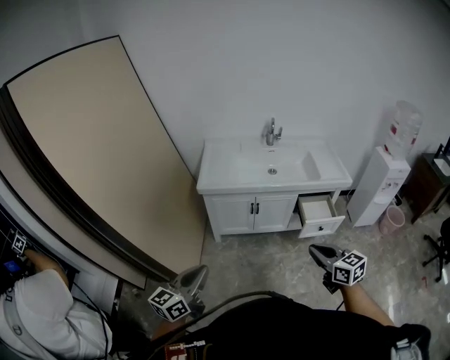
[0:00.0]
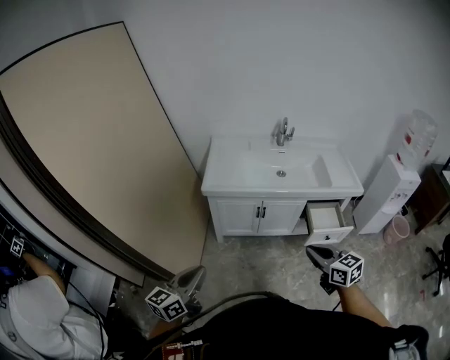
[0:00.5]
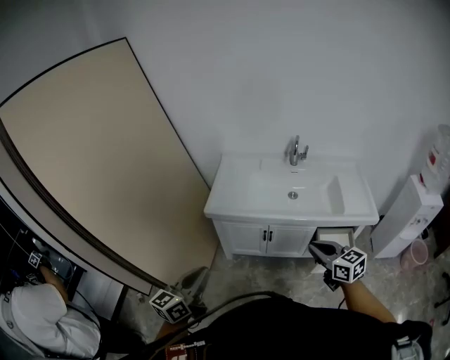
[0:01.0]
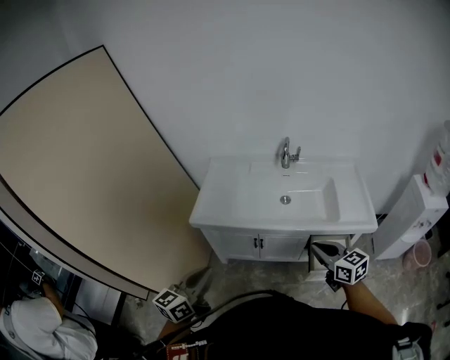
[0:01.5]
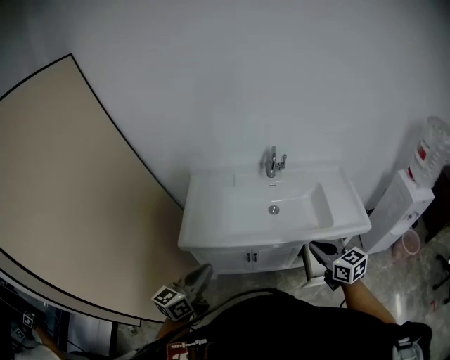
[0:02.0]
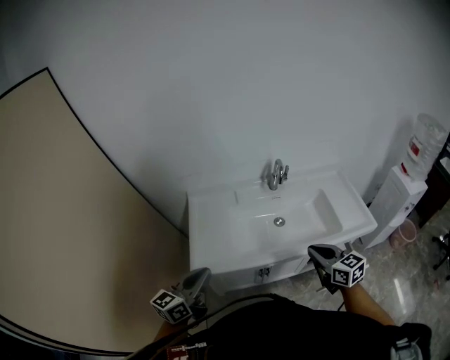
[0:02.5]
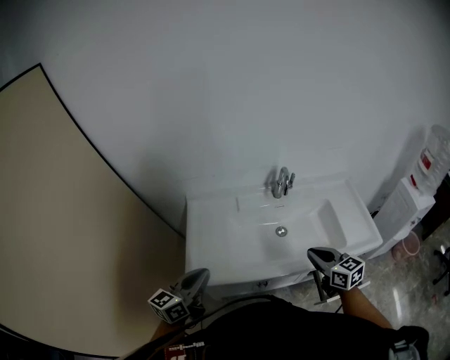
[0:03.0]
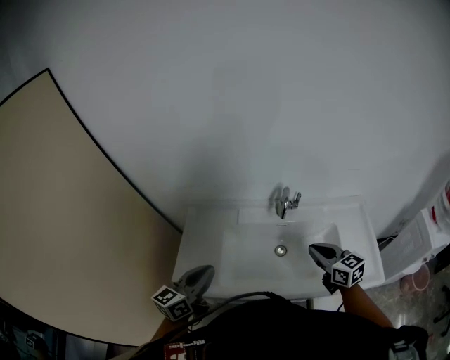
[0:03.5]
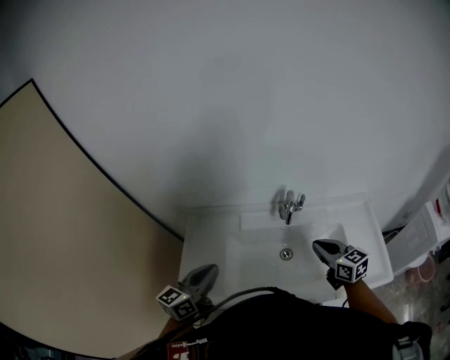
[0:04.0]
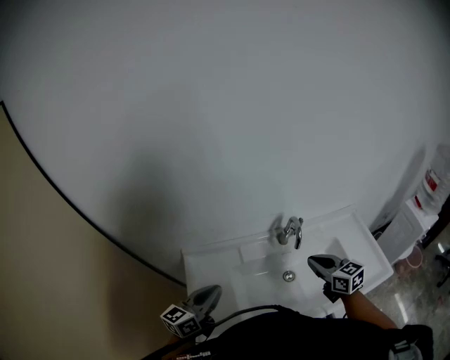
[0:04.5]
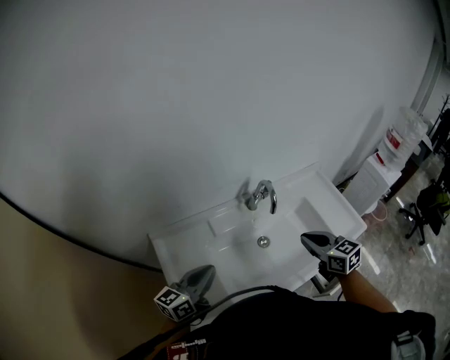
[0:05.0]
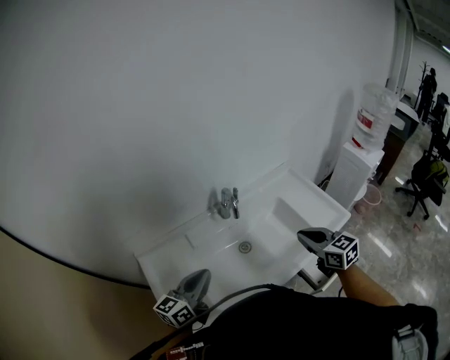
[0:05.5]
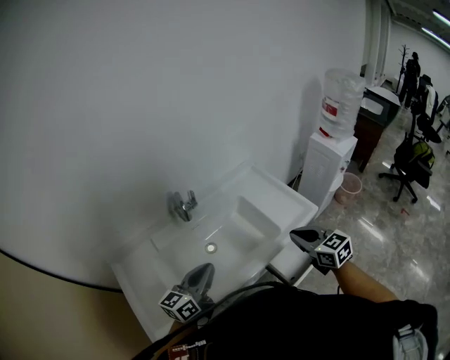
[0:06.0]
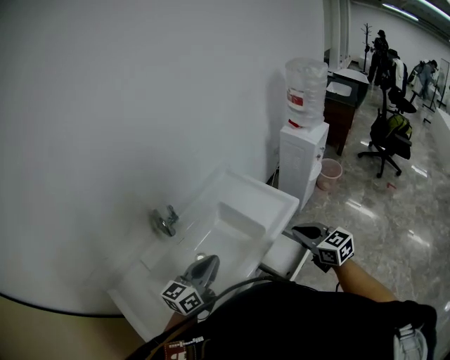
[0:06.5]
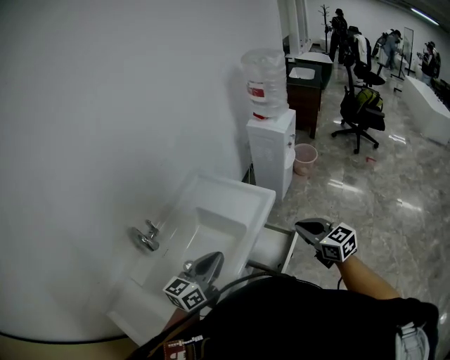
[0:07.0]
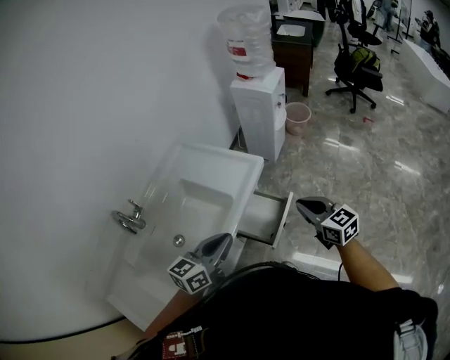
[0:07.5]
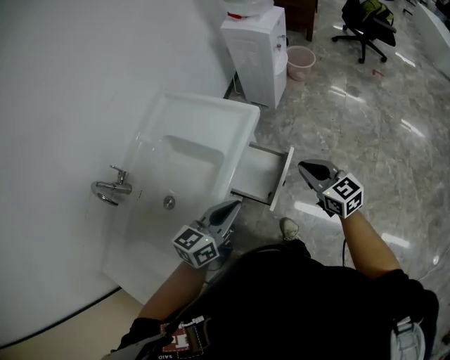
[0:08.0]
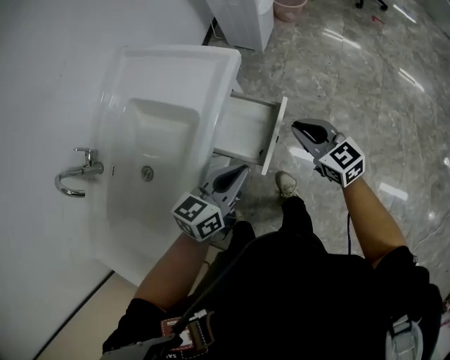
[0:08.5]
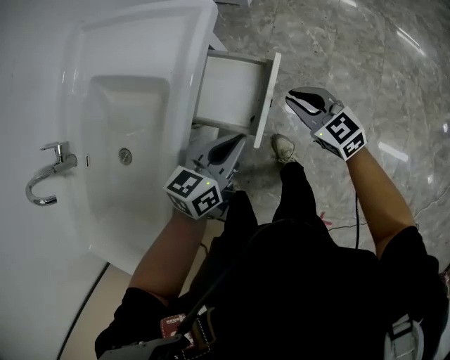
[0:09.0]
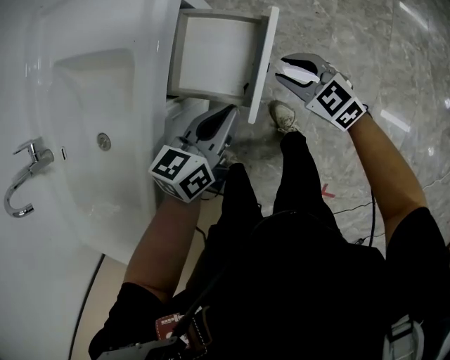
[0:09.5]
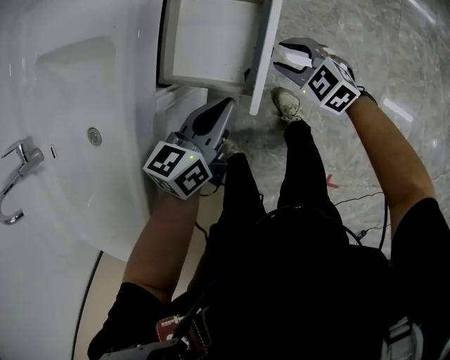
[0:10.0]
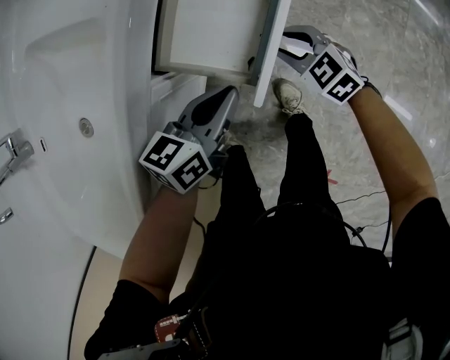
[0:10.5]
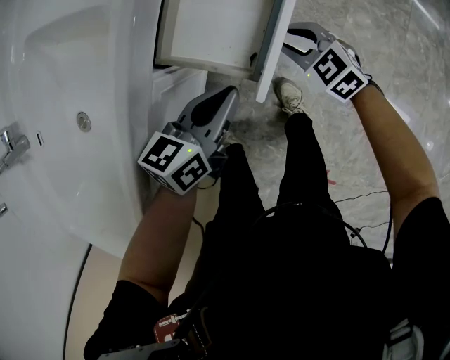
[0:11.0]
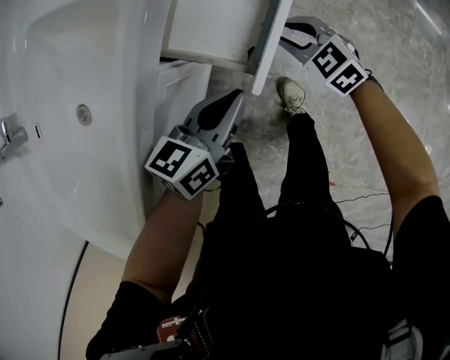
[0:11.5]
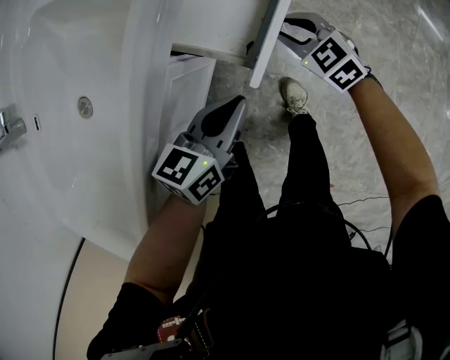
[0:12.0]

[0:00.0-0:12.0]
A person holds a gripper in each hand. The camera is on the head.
0:00.0 to 0:02.0: Both grippers are carried forward, roughly 40 cm.
0:02.0 to 0:04.0: The two grippers go some 30 cm forward.
0:04.0 to 0:06.0: The right gripper ends up about 25 cm from where it was, and changes its angle by about 30 degrees; the left gripper ends up some 20 cm from where it was, and turns by some 30 degrees.
0:06.0 to 0:08.0: The left gripper ends up approximately 30 cm from where it was, and changes its angle by approximately 40 degrees. The right gripper ends up some 30 cm from where it was, and rotates about 30 degrees.
0:08.0 to 0:10.0: The two grippers go about 35 cm downward. The right gripper turns by some 30 degrees, and opens its fingers.
0:10.0 to 0:12.0: The left gripper is displaced backward by about 5 cm.

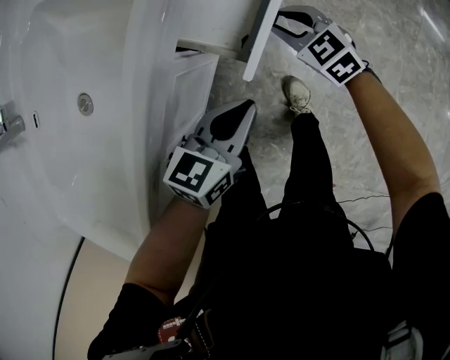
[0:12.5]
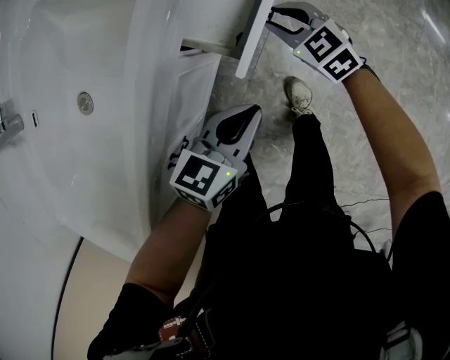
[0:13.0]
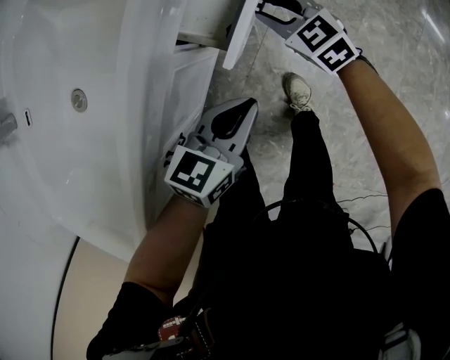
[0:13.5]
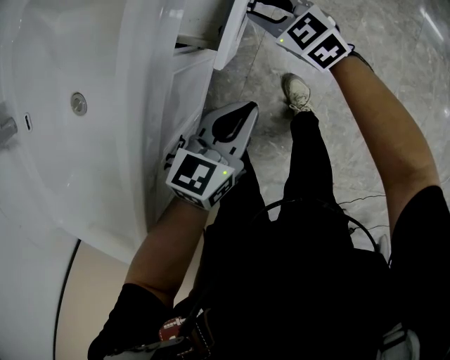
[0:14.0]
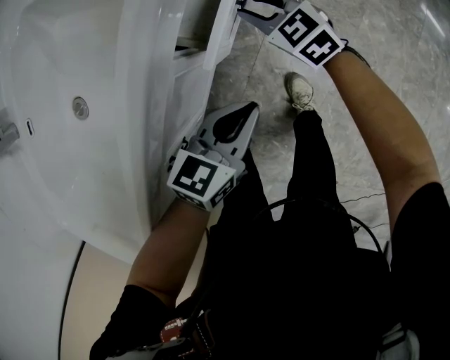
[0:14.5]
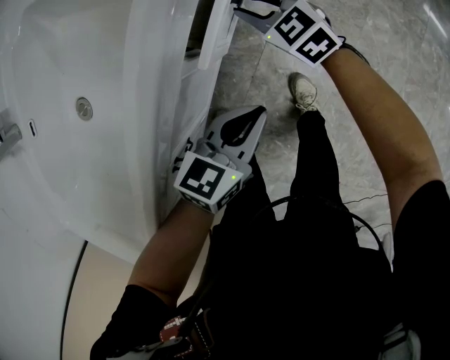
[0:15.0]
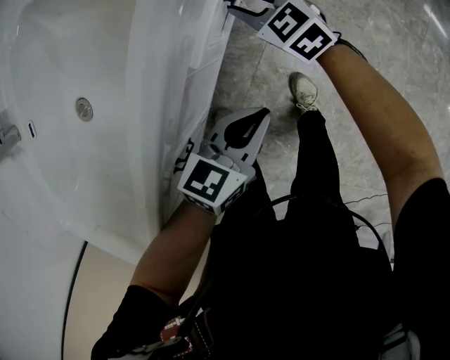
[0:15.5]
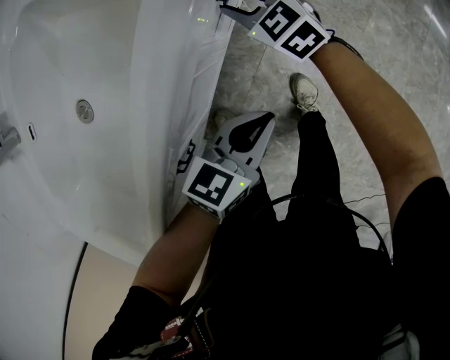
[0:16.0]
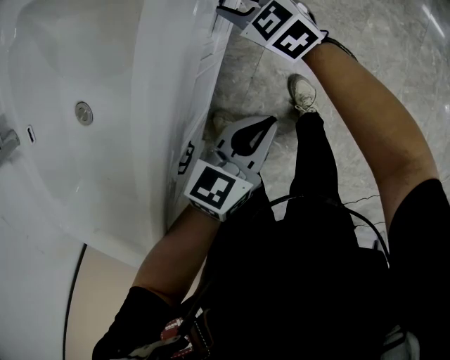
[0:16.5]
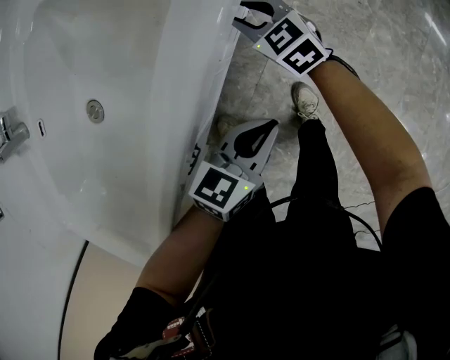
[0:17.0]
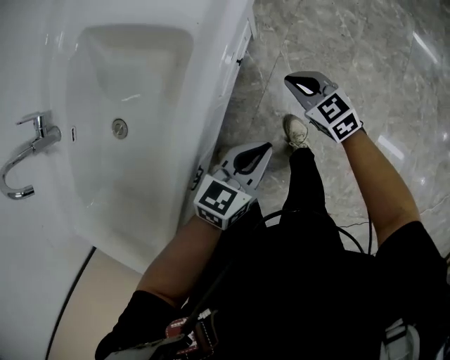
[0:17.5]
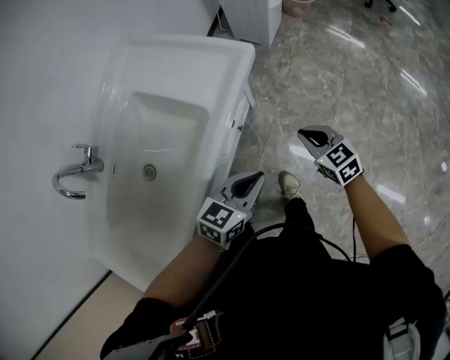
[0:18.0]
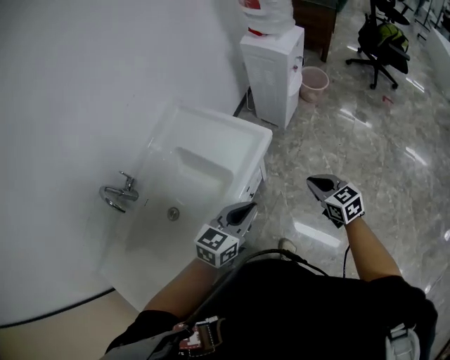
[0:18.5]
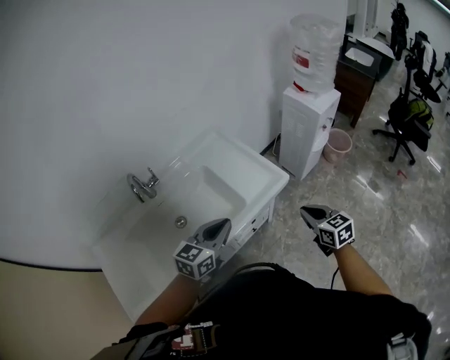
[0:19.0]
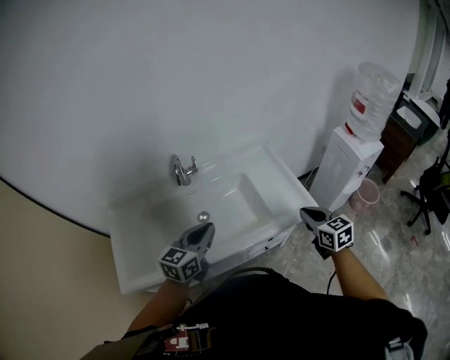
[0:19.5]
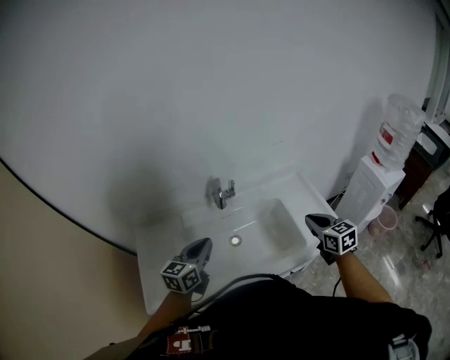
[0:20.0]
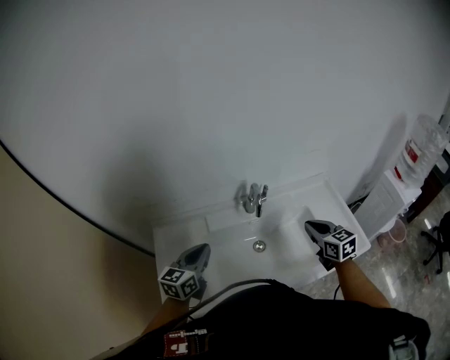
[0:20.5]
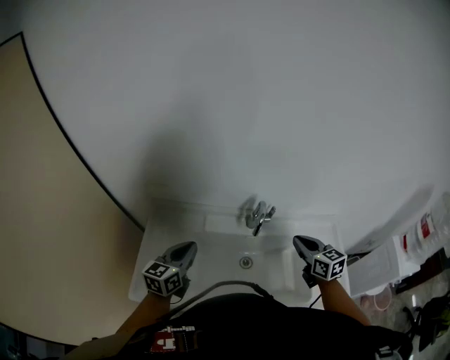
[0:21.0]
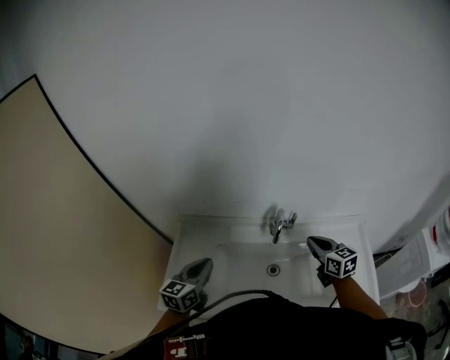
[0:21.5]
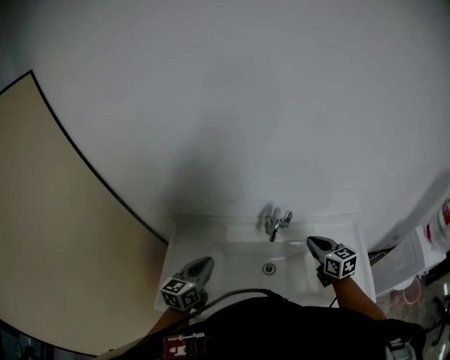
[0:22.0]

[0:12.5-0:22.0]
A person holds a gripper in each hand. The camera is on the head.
0:12.5 to 0:14.5: The right gripper travels to the left by roughly 5 cm.
0:14.5 to 0:16.5: The right gripper goes approximately 5 cm to the left.
0:16.5 to 0:18.0: The left gripper travels upward by roughly 20 cm. Meanwhile the right gripper heads to the right and upward, covering approximately 30 cm, and closes.
0:18.0 to 0:20.0: The left gripper ends up approximately 50 cm from where it was, and changes its angle by roughly 70 degrees. The right gripper shifts some 30 cm upward, and rotates some 30 degrees.
0:20.0 to 0:22.0: The right gripper heads forward and to the left, covering approximately 20 cm, and changes its angle by roughly 20 degrees; the left gripper moves to the left, about 15 cm, and turns by some 20 degrees.

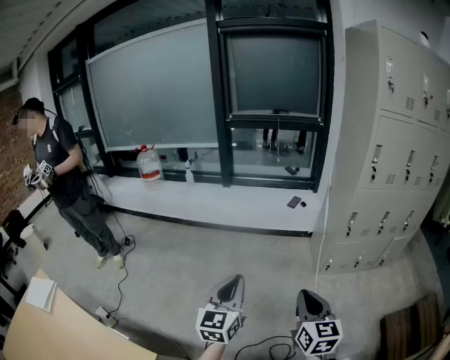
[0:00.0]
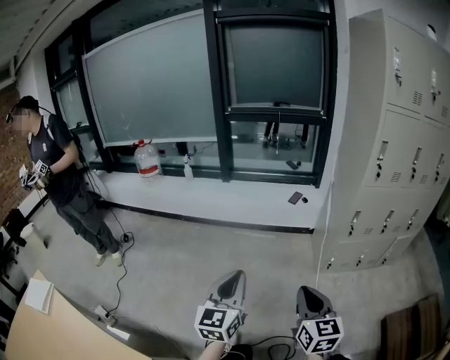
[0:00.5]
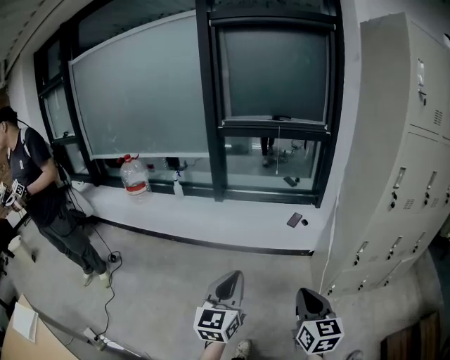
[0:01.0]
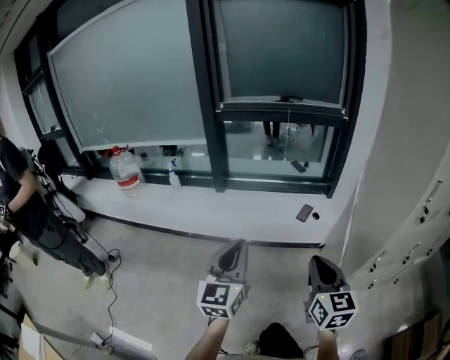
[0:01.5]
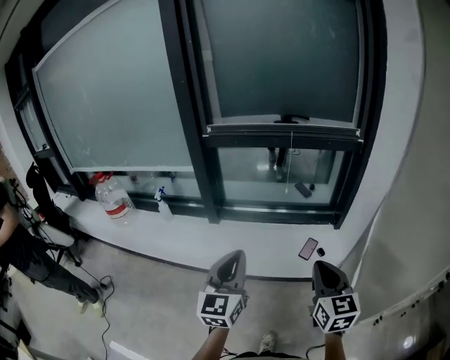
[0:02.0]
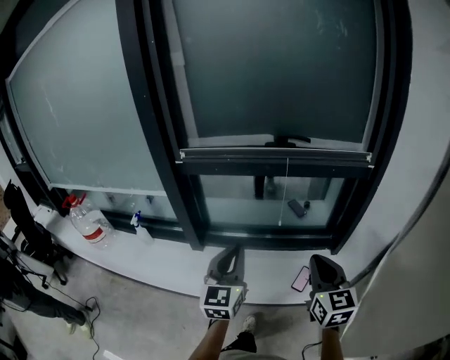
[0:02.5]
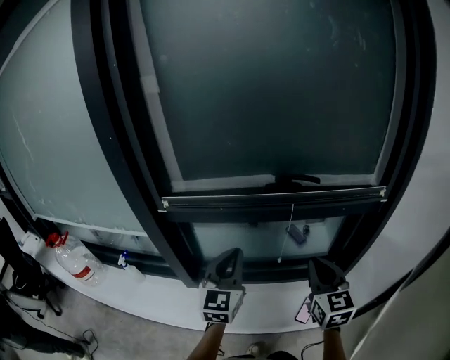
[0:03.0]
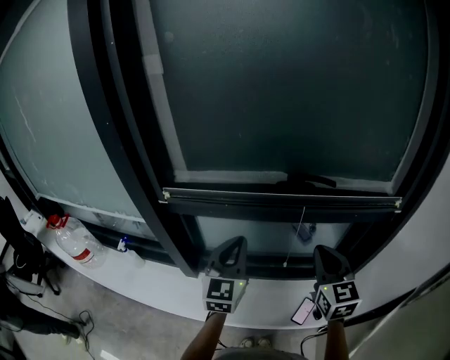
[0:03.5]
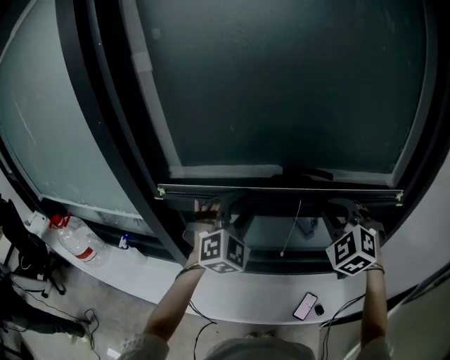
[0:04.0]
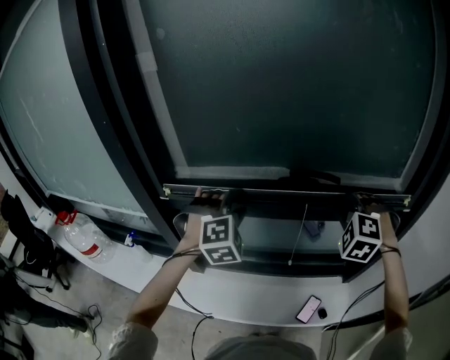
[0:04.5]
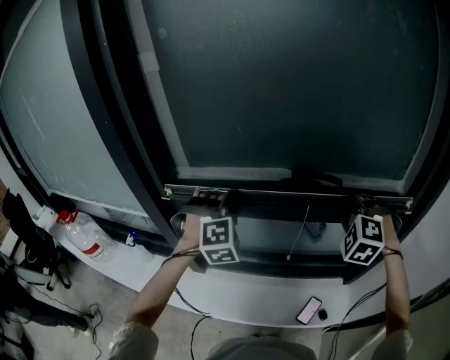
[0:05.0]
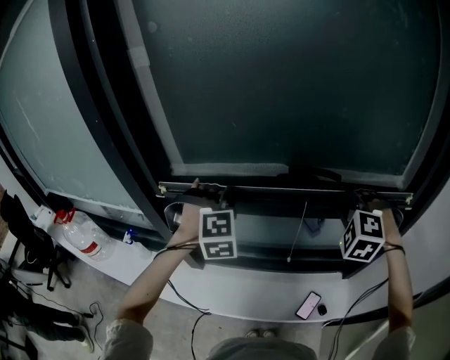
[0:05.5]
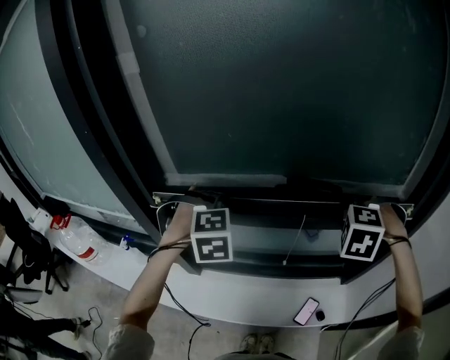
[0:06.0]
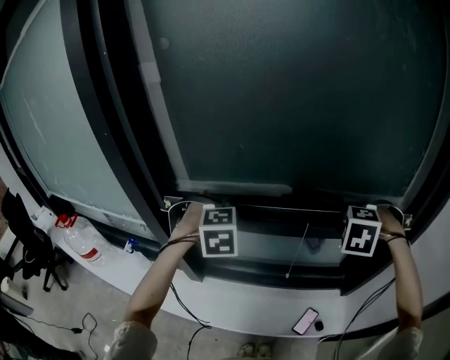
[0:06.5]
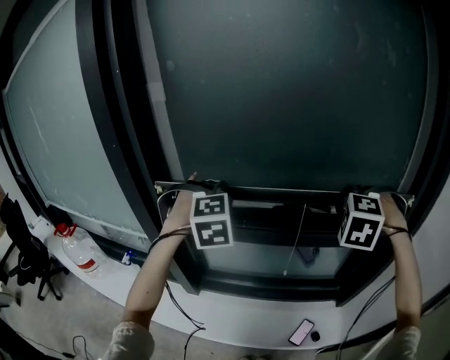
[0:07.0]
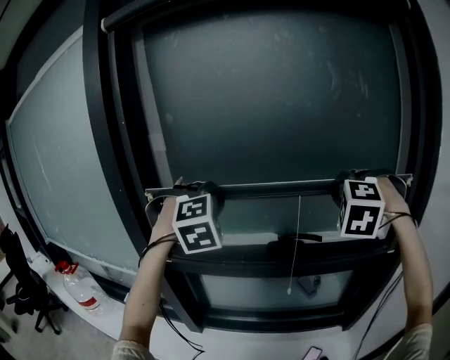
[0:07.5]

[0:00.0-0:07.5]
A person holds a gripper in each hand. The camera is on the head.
0:00.0 to 0:02.0: Both grippers are carried forward, about 70 cm.
0:02.0 to 0:04.0: The pair of grippers is taken forward, approximately 60 cm. The left gripper rotates around the line of its fingers by about 60 degrees, clockwise from behind, and opens up, while the right gripper twists approximately 60 degrees counterclockwise, seen from behind.
0:04.0 to 0:05.5: The right gripper moves approximately 5 cm, and rotates some 30 degrees. Meanwhile the left gripper heads to the left, covering approximately 5 cm, swivels some 40 degrees, and closes.
0:05.5 to 0:07.5: Both grippers travel together upward, some 25 cm.
